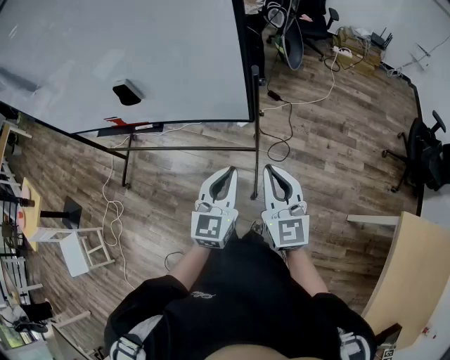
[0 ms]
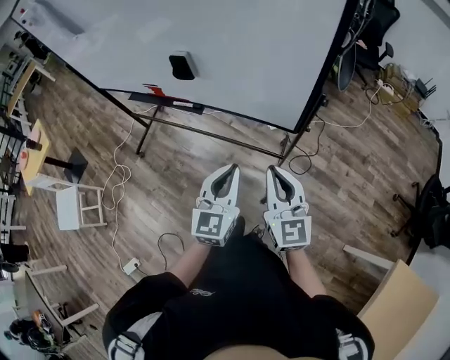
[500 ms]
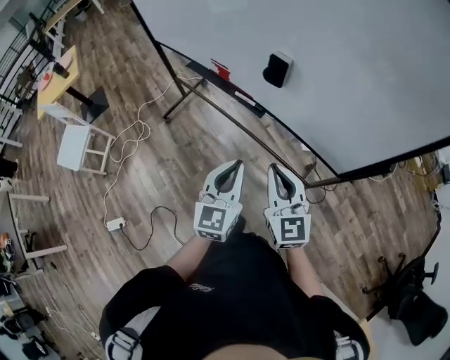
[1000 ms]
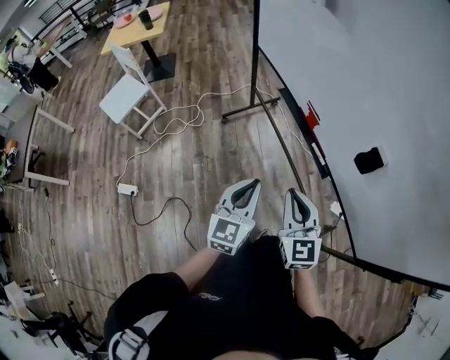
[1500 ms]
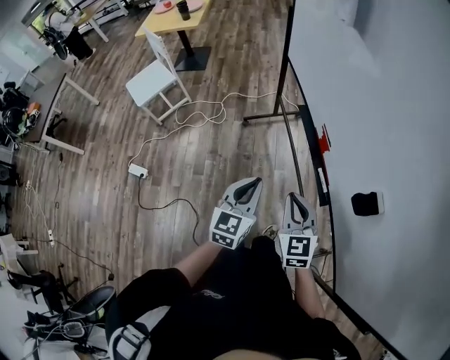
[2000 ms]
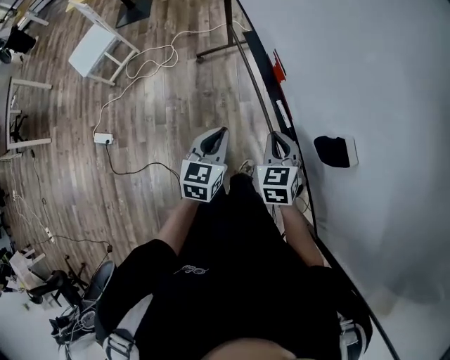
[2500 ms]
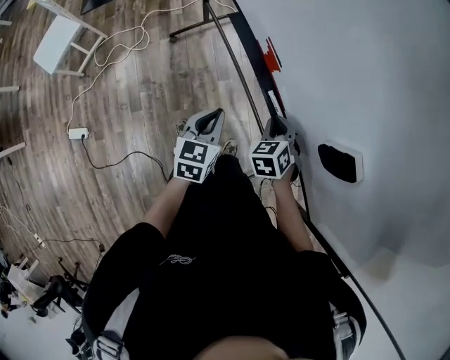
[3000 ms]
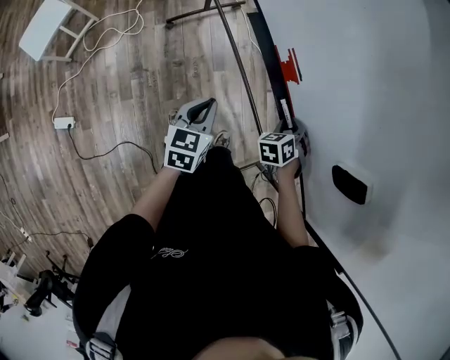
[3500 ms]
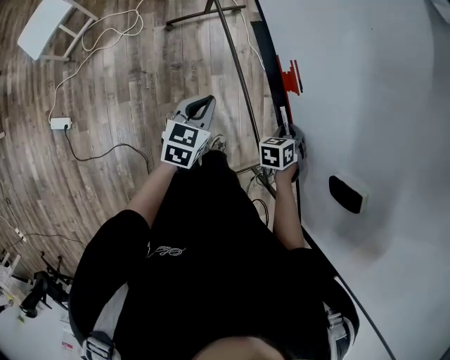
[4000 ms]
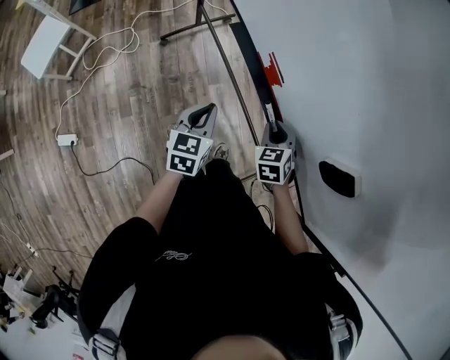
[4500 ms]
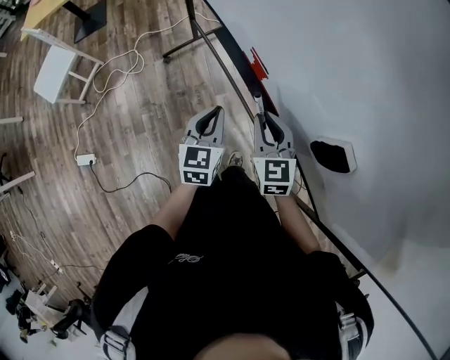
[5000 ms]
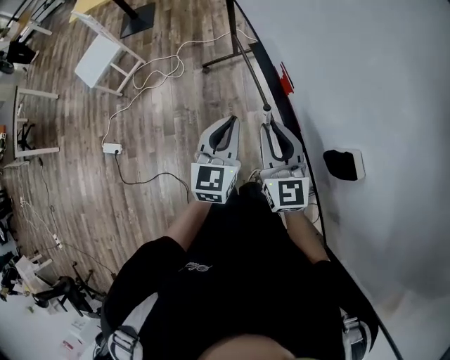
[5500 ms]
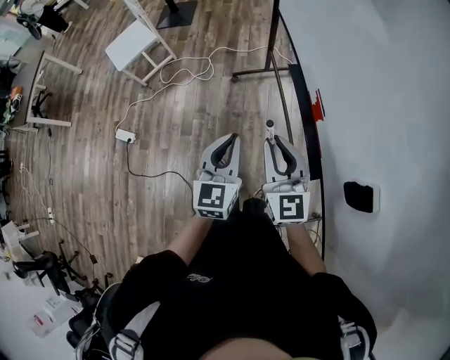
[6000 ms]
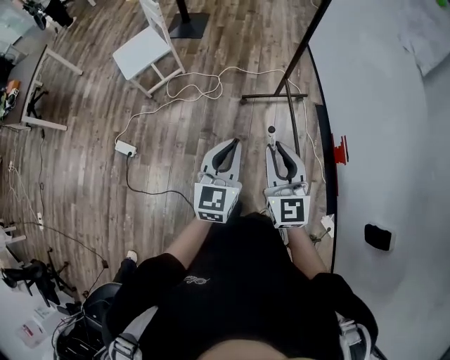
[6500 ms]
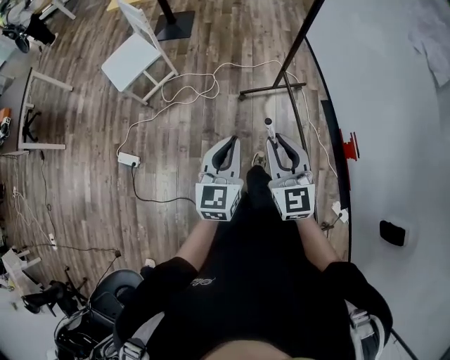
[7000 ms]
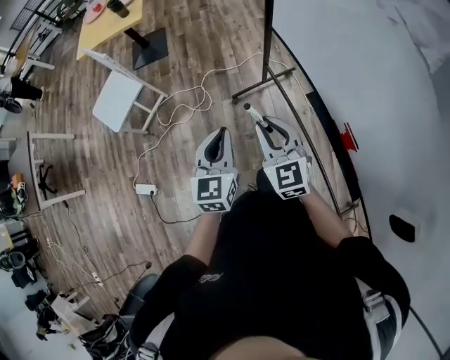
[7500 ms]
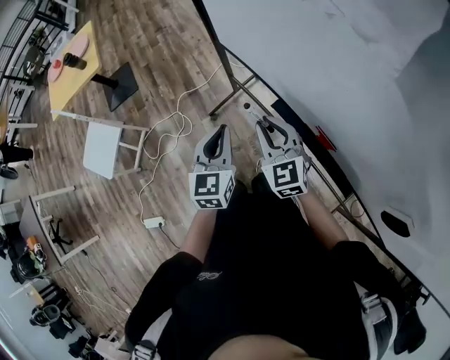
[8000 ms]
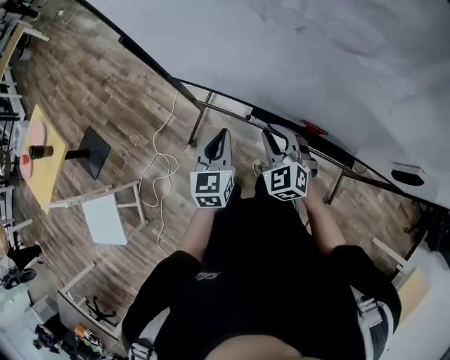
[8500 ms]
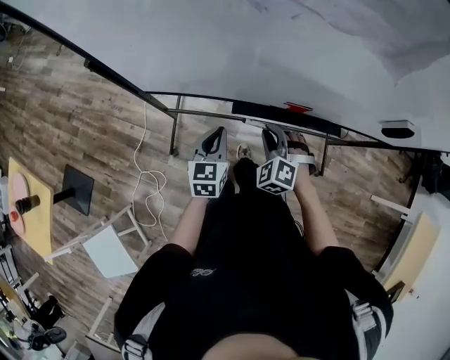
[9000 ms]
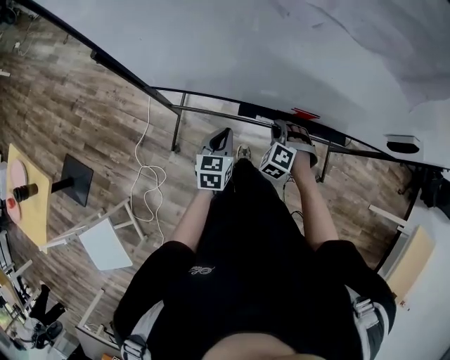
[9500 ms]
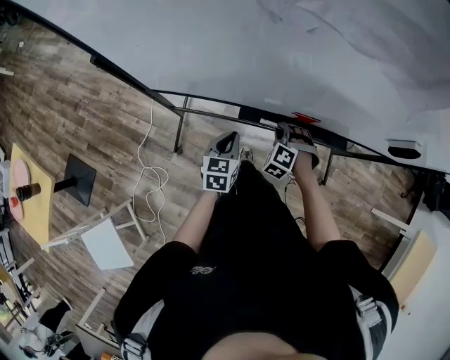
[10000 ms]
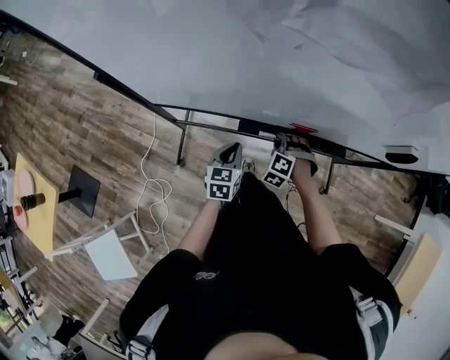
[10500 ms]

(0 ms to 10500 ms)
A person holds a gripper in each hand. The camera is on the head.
0 ms - 2000 ms: The pair of grippers is taken approximately 50 cm. The right gripper swivels about 70 degrees; the left gripper swivels some 60 degrees.
2000 ms - 4000 ms: Both grippers move downward, about 20 cm. The left gripper turns by approximately 30 degrees; the right gripper points its fingers about 40 degrees further downward.
4000 ms - 6500 ms: The right gripper moves approximately 40 cm, and tilts its fingers about 50 degrees upward, while the left gripper moves upward, some 15 cm, and changes its angle by about 40 degrees.
6500 ms - 8500 ms: The right gripper ends up roughly 30 cm from where it was, and changes its angle by approximately 60 degrees. Meanwhile the left gripper moves approximately 35 cm, and changes its angle by some 50 degrees.
8500 ms - 10500 ms: Both grippers move downward, roughly 15 cm. The right gripper rotates some 40 degrees; the left gripper rotates approximately 30 degrees.

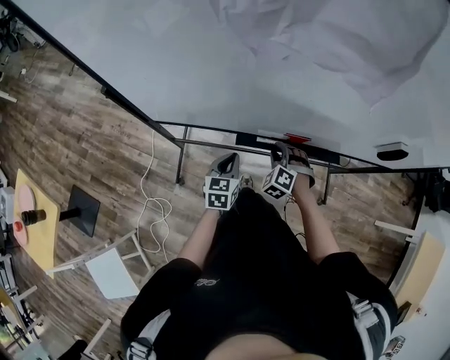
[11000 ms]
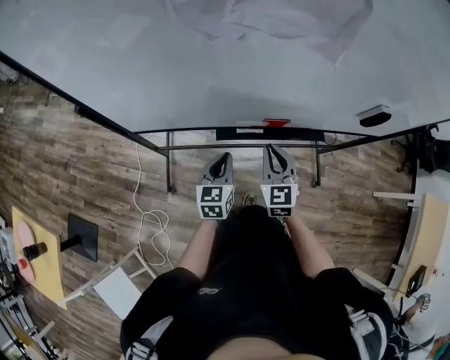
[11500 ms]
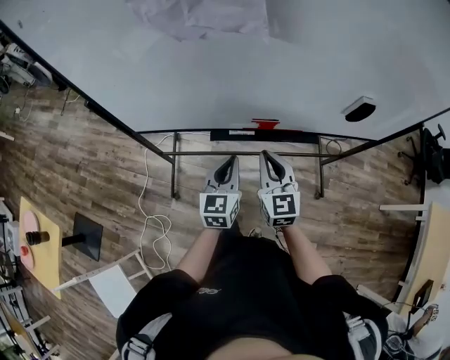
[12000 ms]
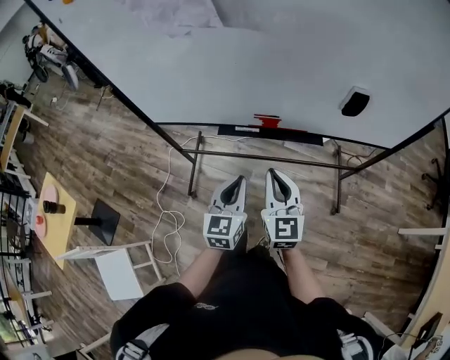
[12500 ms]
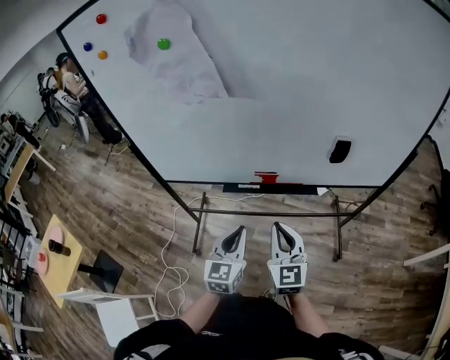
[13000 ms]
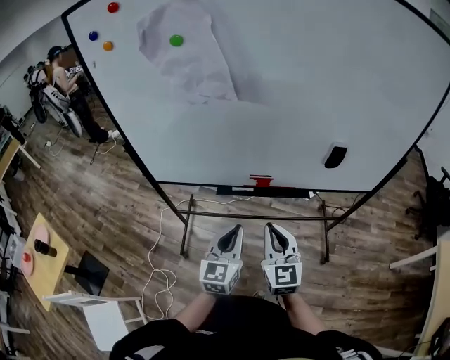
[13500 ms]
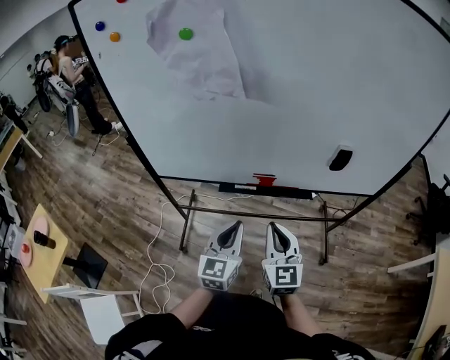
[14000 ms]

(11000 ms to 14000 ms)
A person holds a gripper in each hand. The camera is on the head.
11000 ms - 12500 ms: The right gripper shifts approximately 30 cm upward, backward and to the right, angles its fingers upward, by approximately 40 degrees, and closes. Meanwhile the left gripper is displaced backward, to the right and upward by about 25 cm.
12500 ms - 14000 ms: The left gripper goes roughly 5 cm upward, while the right gripper shifts by approximately 5 cm.

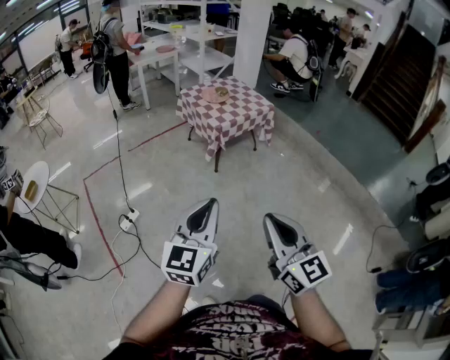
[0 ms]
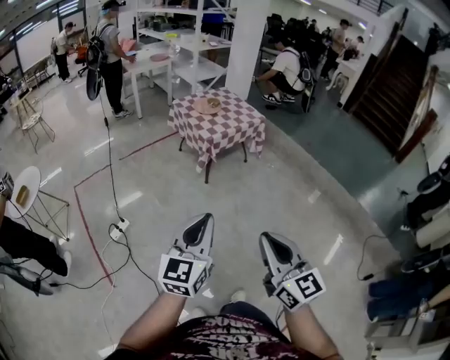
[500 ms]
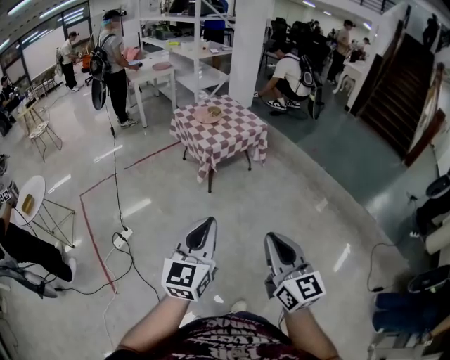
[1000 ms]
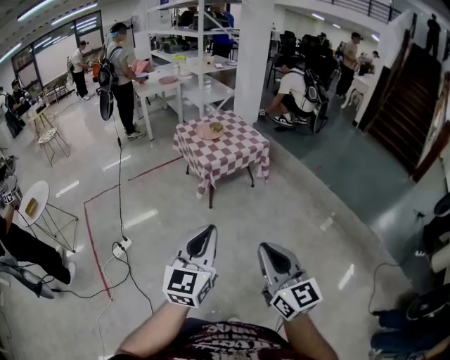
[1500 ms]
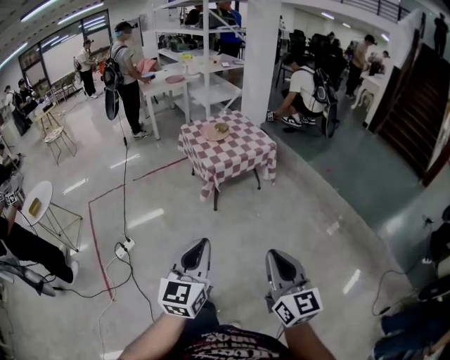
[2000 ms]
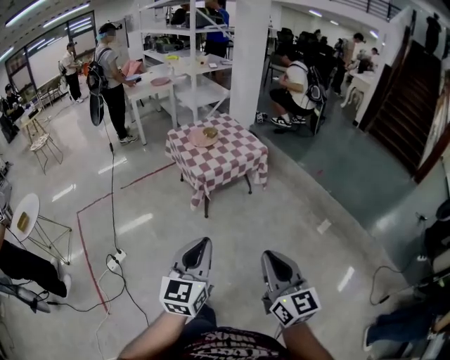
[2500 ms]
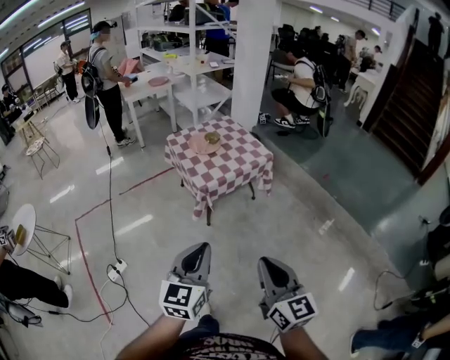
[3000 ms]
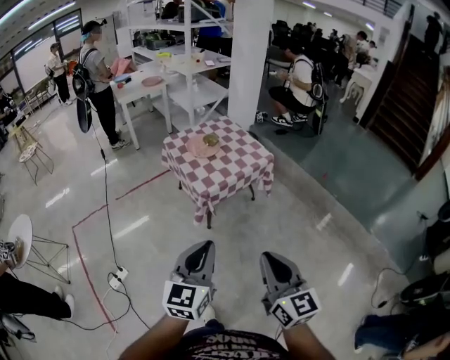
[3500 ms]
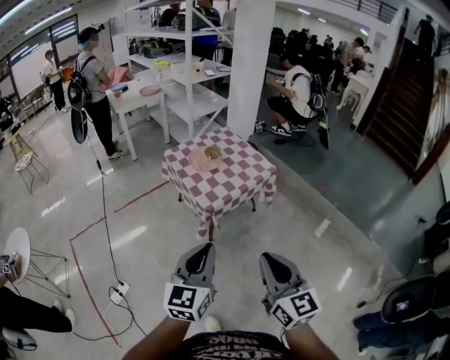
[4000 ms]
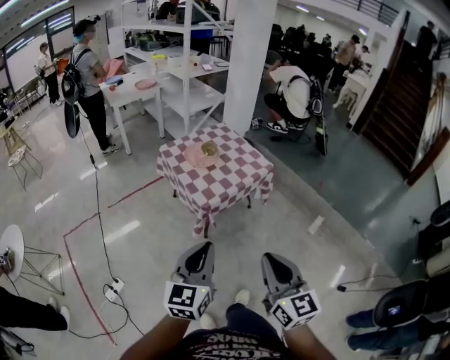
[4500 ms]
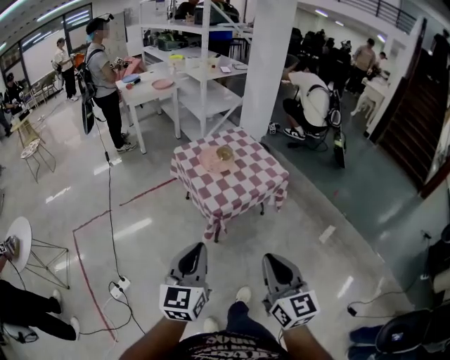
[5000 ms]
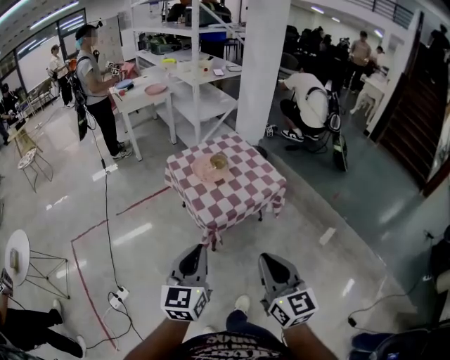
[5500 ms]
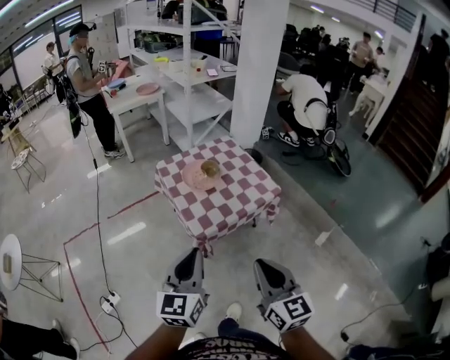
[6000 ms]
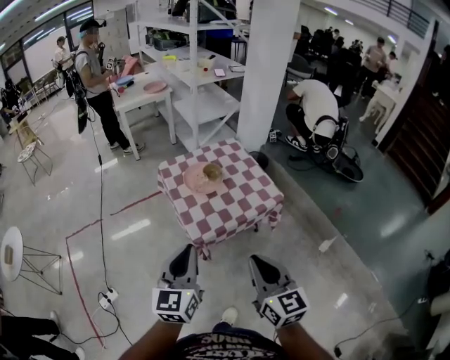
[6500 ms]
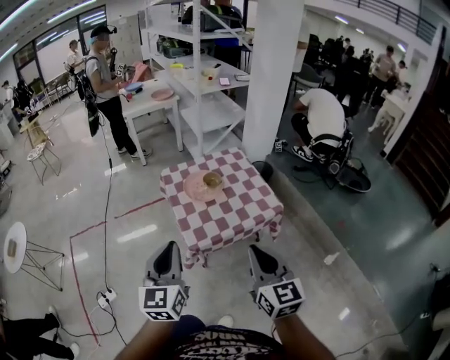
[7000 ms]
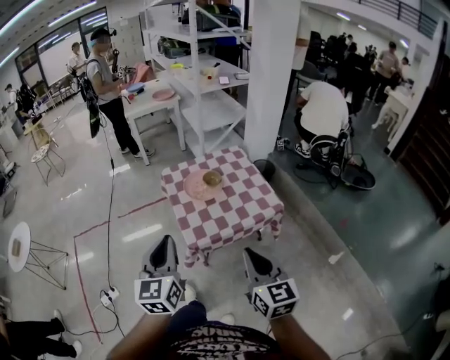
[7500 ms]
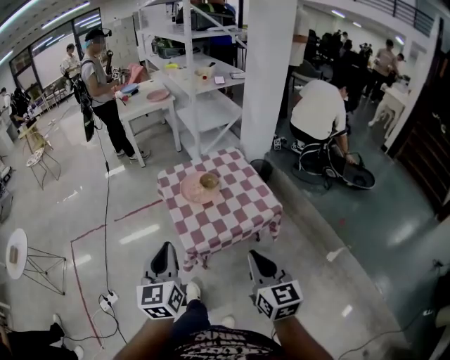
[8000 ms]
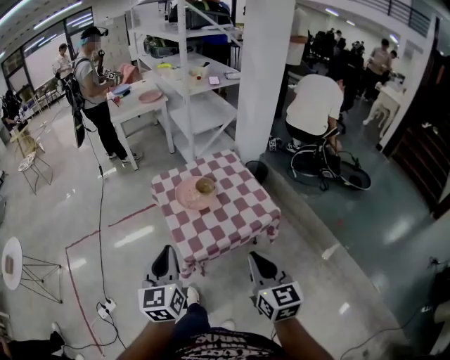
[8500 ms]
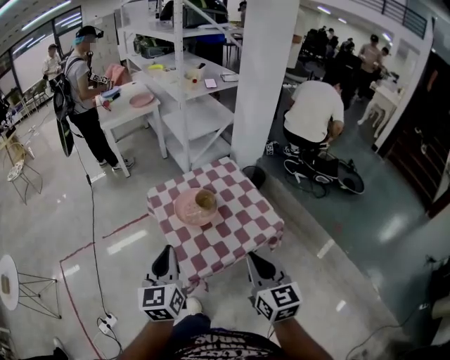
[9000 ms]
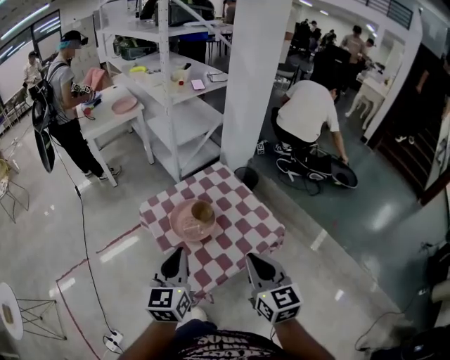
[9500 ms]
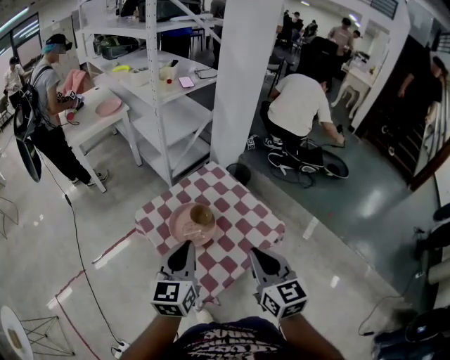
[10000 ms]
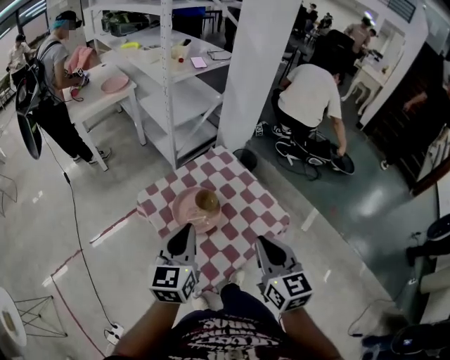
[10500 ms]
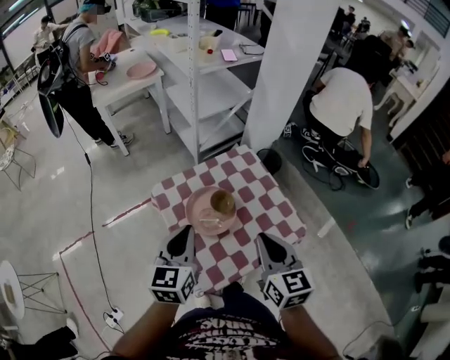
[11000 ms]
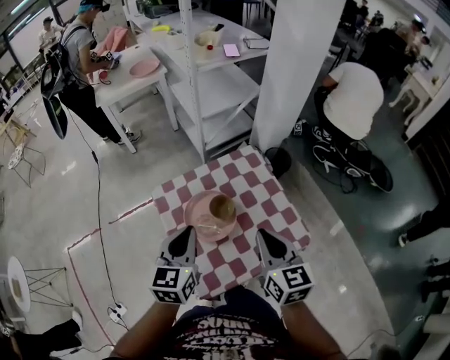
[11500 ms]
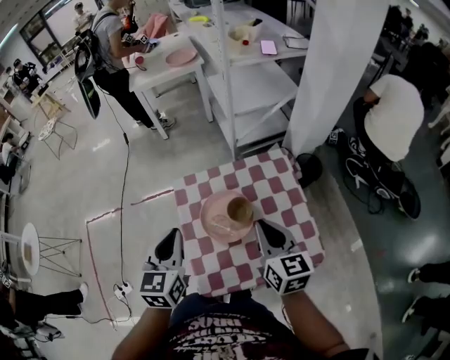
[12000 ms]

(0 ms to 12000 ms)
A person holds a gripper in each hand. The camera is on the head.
0 ms - 2000 ms: Both grippers travel together to the right and forward, some 20 cm.
2000 ms - 4000 ms: The right gripper travels forward and to the left by roughly 30 cm. The left gripper shifts about 30 cm forward.
4000 ms - 6000 ms: The grippers both shift forward by approximately 20 cm.
6000 ms - 8000 ms: The left gripper shifts some 10 cm forward. The right gripper moves forward and to the right, roughly 15 cm.
8000 ms - 10000 ms: The two grippers go about 25 cm forward. The left gripper swivels approximately 30 degrees.
10000 ms - 12000 ms: The right gripper moves about 20 cm, and swivels some 30 degrees. The left gripper moves roughly 10 cm, and rotates some 30 degrees.

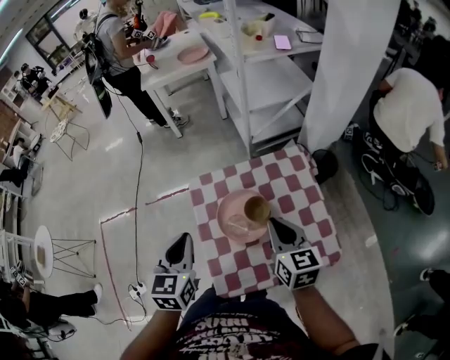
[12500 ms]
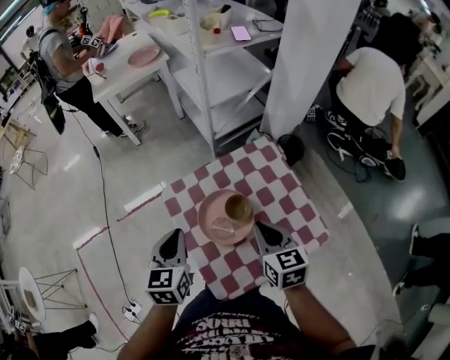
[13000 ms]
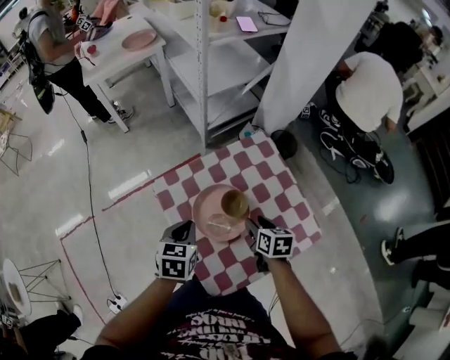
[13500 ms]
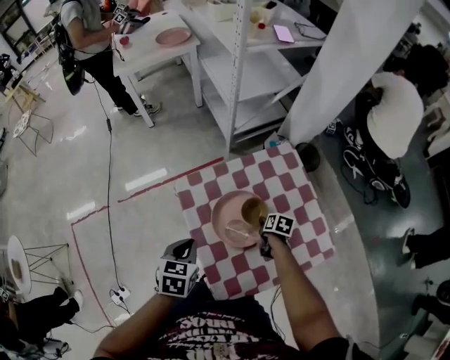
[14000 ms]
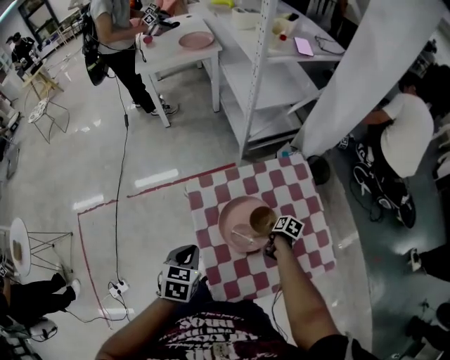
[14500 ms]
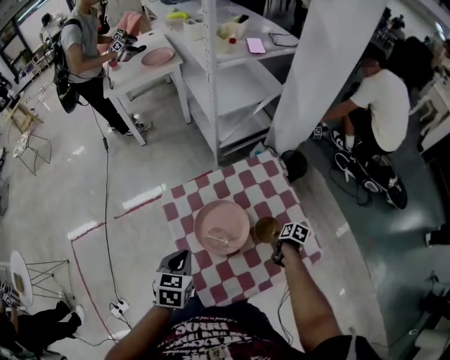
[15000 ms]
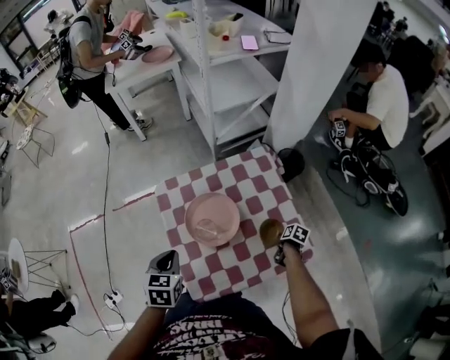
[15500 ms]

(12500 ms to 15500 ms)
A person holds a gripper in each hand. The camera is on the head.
12500 ms - 14000 ms: The right gripper moves downward, some 30 cm, angles its fingers downward, by approximately 40 degrees, and opens up. Meanwhile the left gripper shifts about 15 cm downward, and changes its angle by some 30 degrees.
14000 ms - 15500 ms: The right gripper heads to the right and backward, covering some 20 cm, and closes. Meanwhile the left gripper goes some 10 cm to the right and backward.
